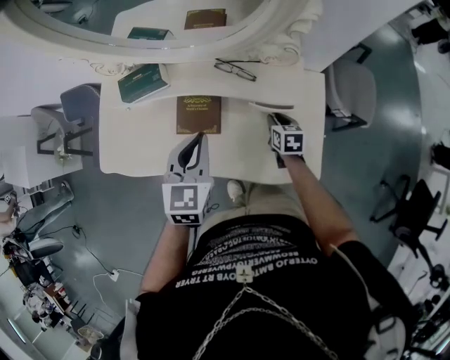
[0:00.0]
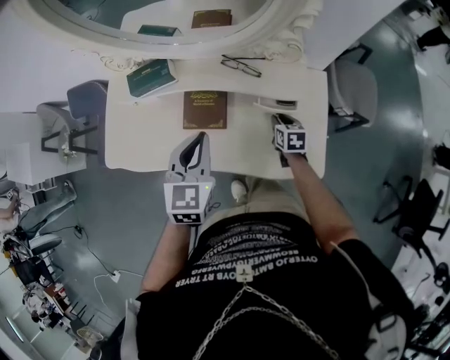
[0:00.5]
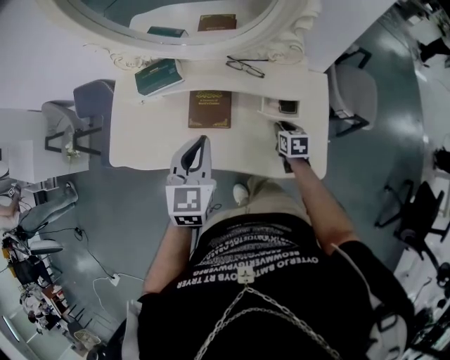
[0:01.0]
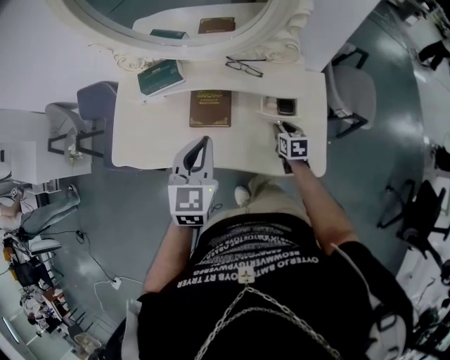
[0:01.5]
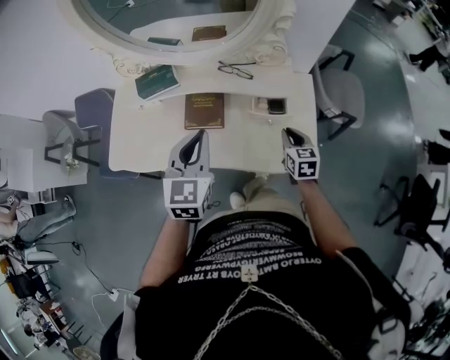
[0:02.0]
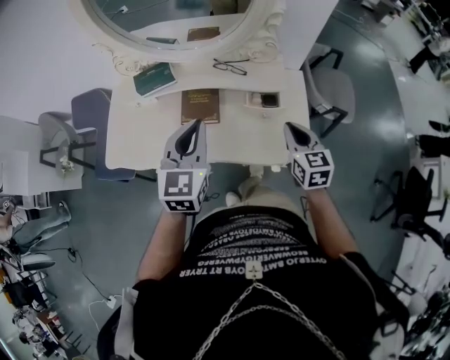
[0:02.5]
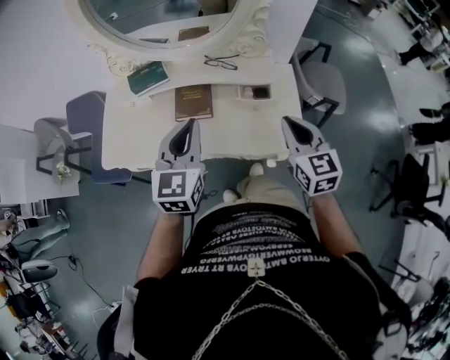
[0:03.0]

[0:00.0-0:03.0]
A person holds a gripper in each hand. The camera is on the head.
0:00.0 to 0:01.5: Both grippers travel together backward, roughly 5 cm.
0:01.5 to 0:03.0: The left gripper travels upward and backward by some 10 cm. The right gripper shifts approximately 35 cm upward and backward, tips its fingers upward by approximately 30 degrees, and closes.

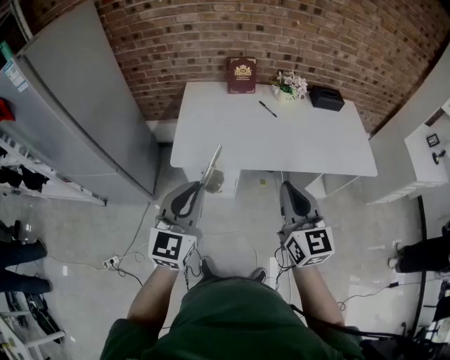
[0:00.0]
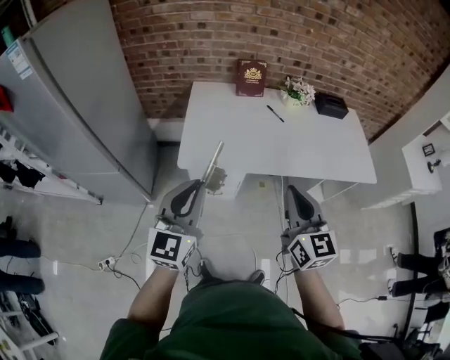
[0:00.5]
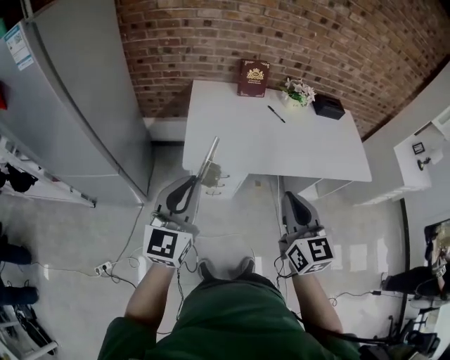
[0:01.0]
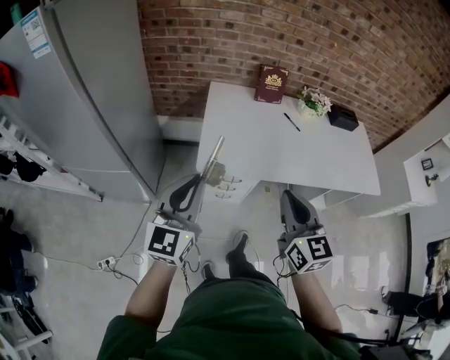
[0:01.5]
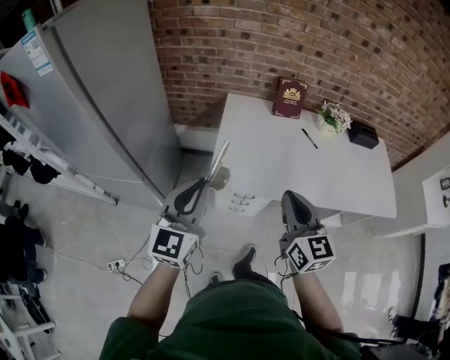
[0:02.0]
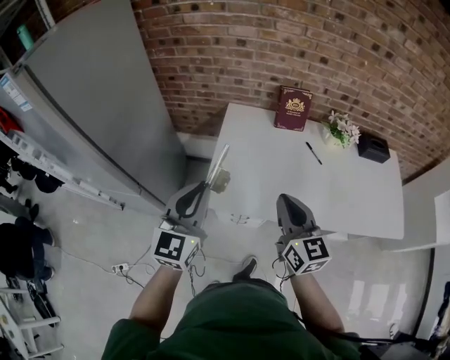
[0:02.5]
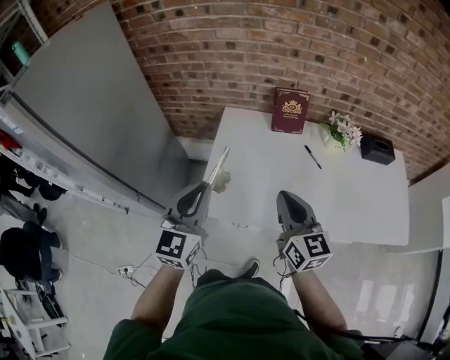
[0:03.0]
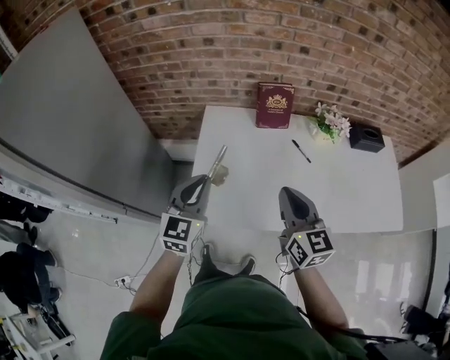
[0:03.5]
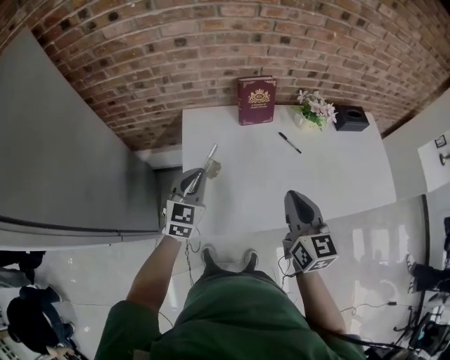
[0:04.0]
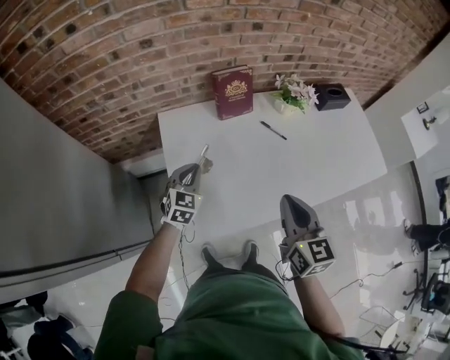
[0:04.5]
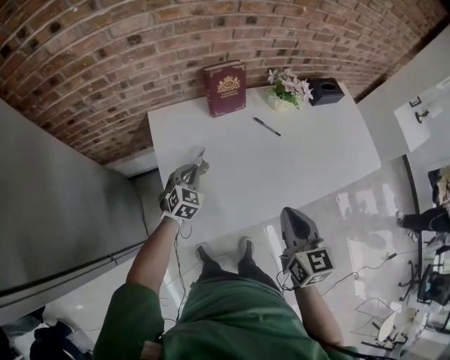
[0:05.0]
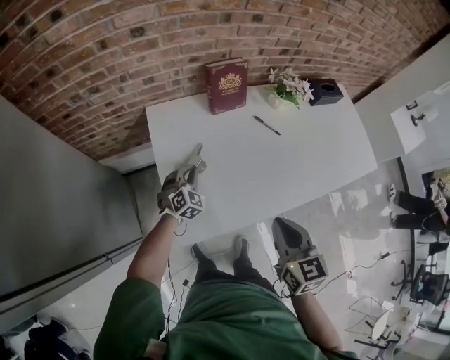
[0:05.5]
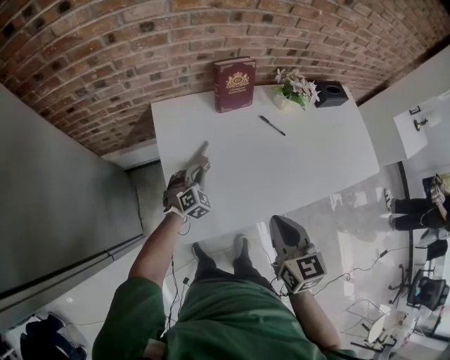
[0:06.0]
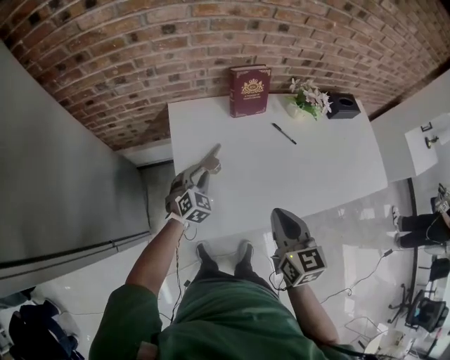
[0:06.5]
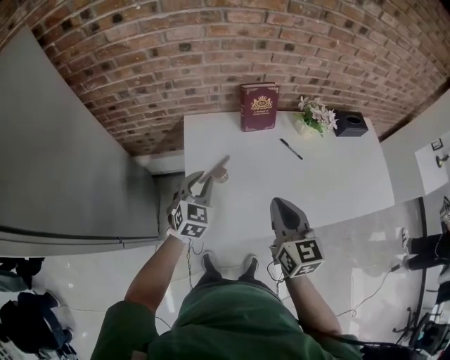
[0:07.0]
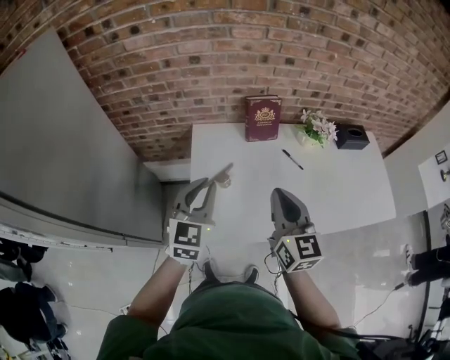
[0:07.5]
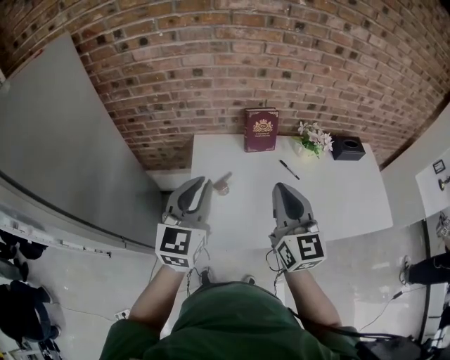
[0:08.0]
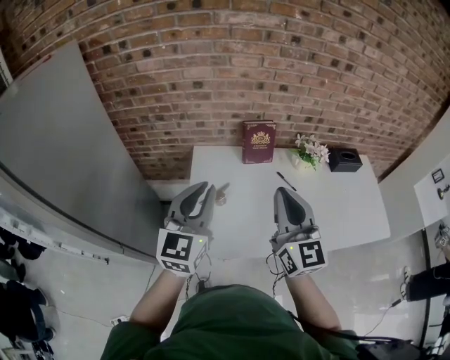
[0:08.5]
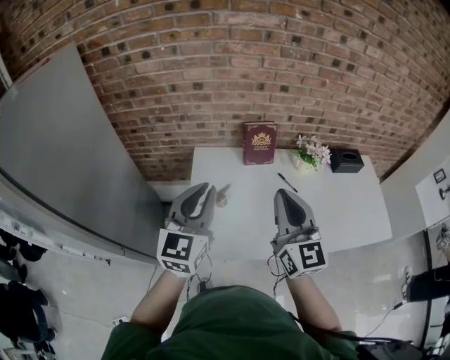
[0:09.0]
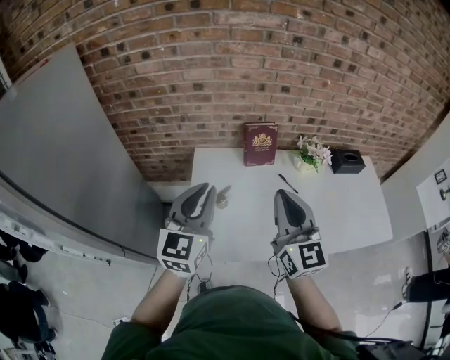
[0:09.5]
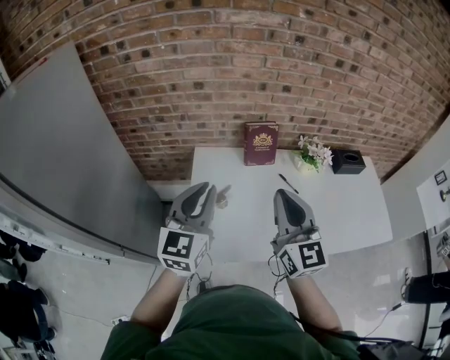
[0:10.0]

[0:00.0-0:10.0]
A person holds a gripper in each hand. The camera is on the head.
0:00.0 to 0:02.0: Both grippers travel together to the left and forward, roughly 20 cm.
0:02.0 to 0:04.0: The left gripper goes some 35 cm forward and downward, and changes its angle by approximately 20 degrees; the right gripper heads forward and to the right, covering approximately 20 cm.
0:04.0 to 0:06.0: The right gripper travels backward and downward by roughly 10 cm. The left gripper is displaced downward by approximately 20 cm, and turns by some 40 degrees.
0:06.0 to 0:08.0: The right gripper is displaced upward by about 15 cm, and points its fingers approximately 30 degrees further upward; the left gripper goes some 40 cm upward, and tips its fingers upward by some 40 degrees.
0:08.0 to 0:10.0: The grippers make only small movements.

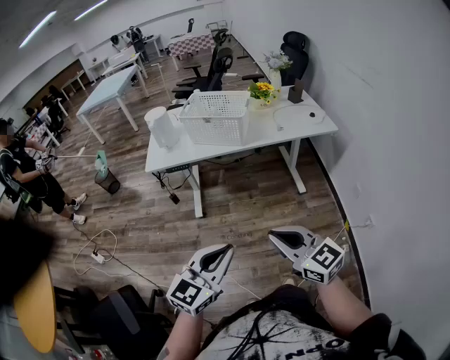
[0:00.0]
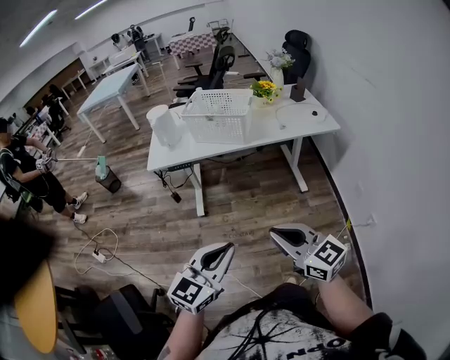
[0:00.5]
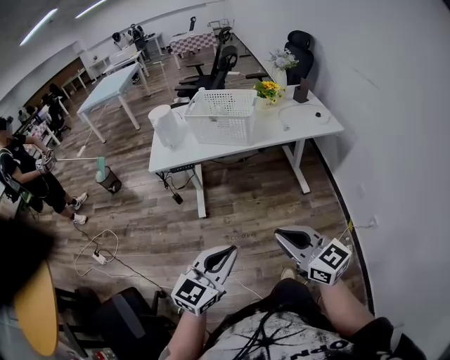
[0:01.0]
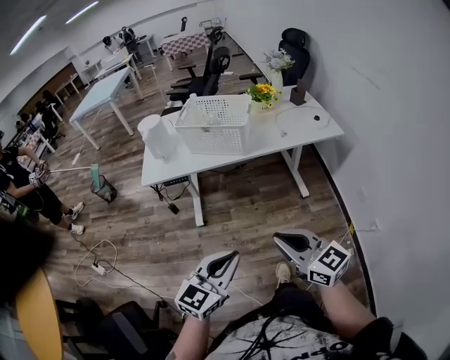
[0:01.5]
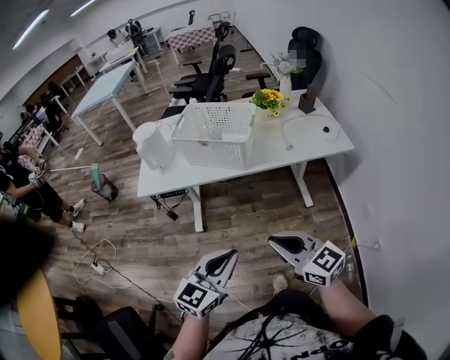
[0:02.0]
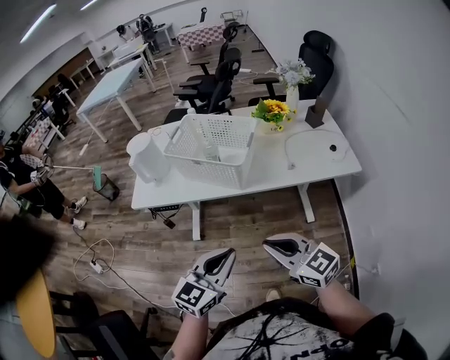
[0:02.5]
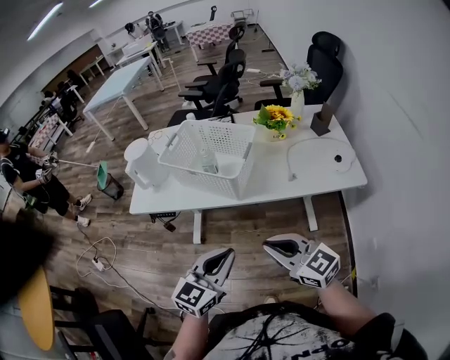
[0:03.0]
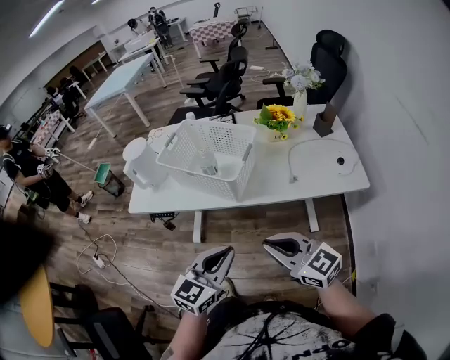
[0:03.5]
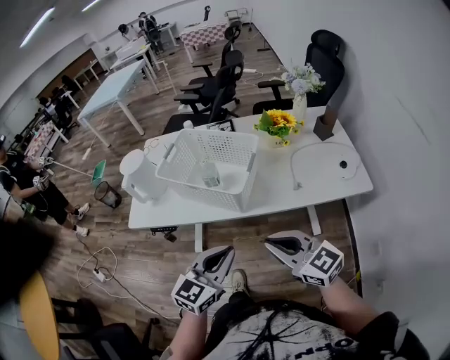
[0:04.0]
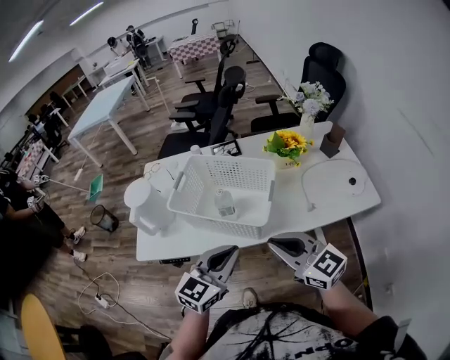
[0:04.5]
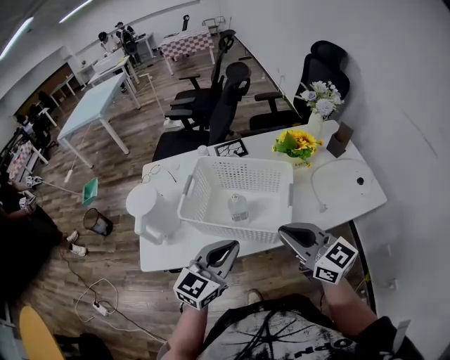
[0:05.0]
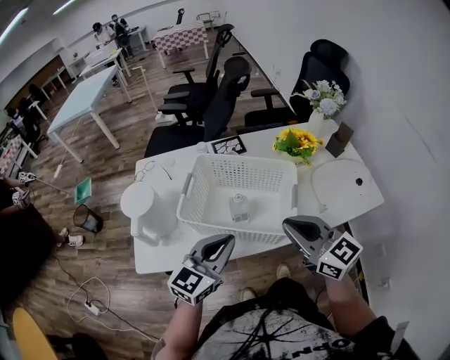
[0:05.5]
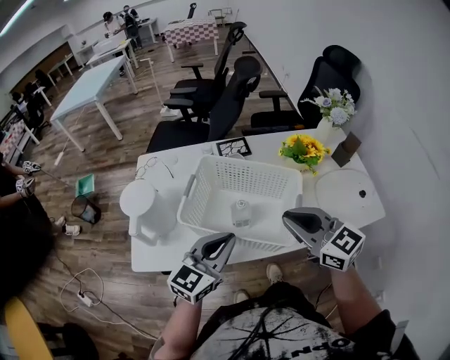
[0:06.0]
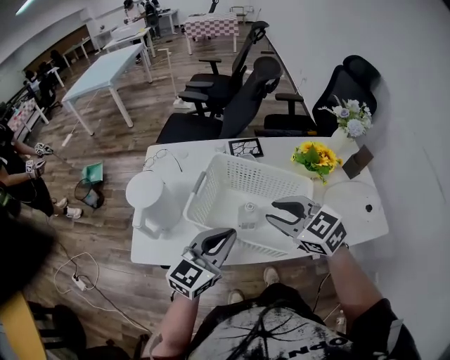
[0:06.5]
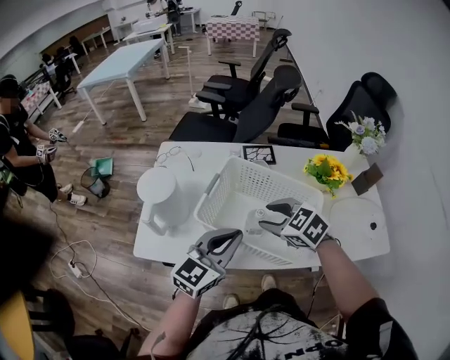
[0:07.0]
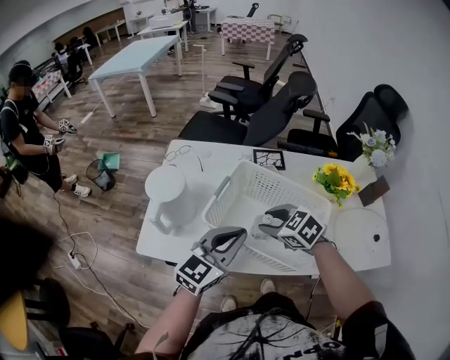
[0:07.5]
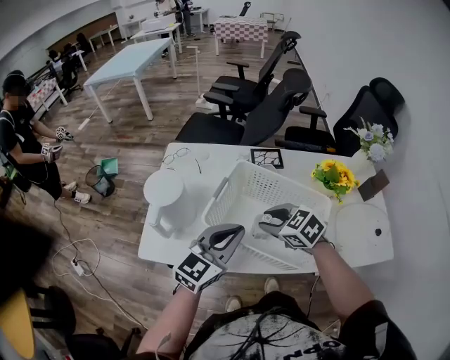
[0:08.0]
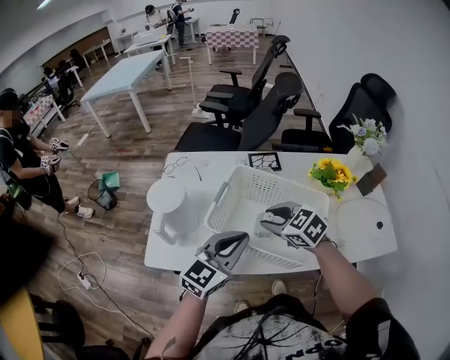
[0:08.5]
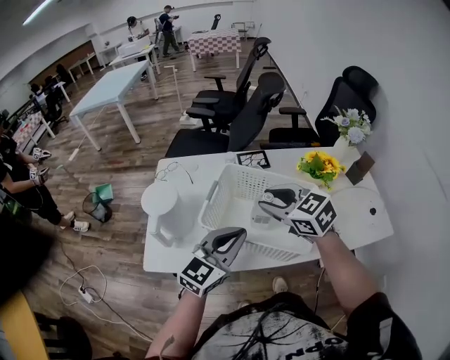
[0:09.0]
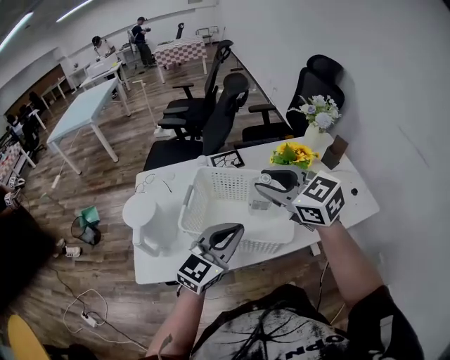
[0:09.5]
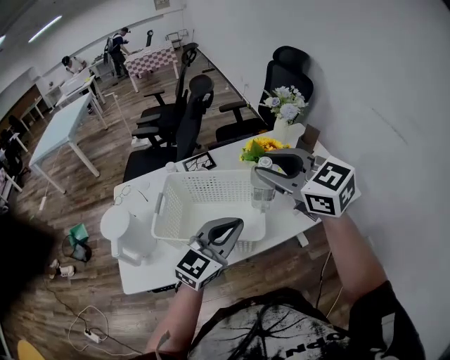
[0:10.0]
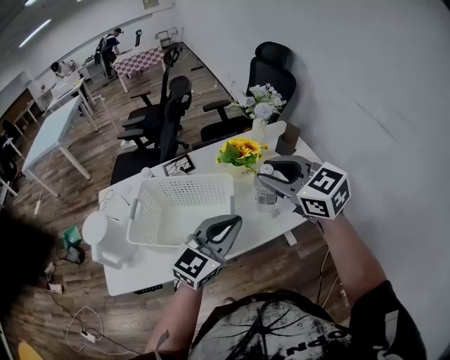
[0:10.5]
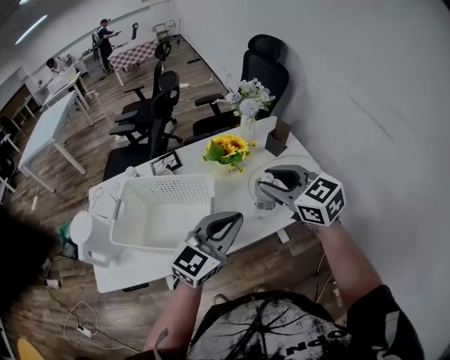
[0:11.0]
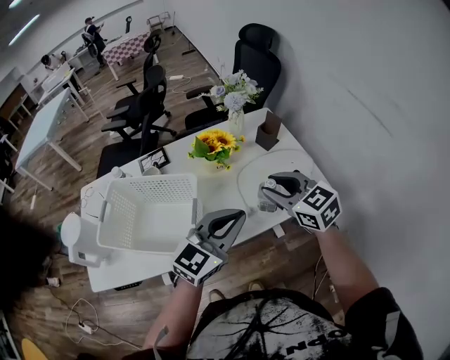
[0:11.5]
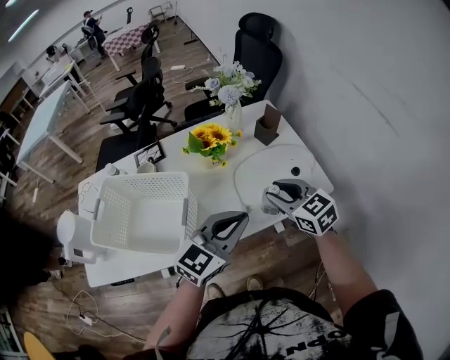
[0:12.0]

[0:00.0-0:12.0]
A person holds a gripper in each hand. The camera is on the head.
0:00.0 to 0:02.0: Both grippers move forward, approximately 20 cm.
0:02.0 to 0:04.0: The two grippers go some 25 cm forward and to the right.
0:04.0 to 0:06.0: The grippers both shift forward and to the left by some 25 cm.
0:06.0 to 0:08.0: The left gripper shifts about 5 cm forward. Meanwhile the right gripper goes about 20 cm downward, forward and to the left, tips its fingers downward by some 30 degrees, and opens its fingers.
0:08.0 to 0:10.0: The left gripper changes place by approximately 15 cm, and rotates about 20 degrees; the right gripper goes some 25 cm upward, and tips its fingers upward by roughly 30 degrees.
0:10.0 to 0:12.0: The left gripper is displaced to the right by some 25 cm; the right gripper is displaced to the right and downward by some 35 cm.

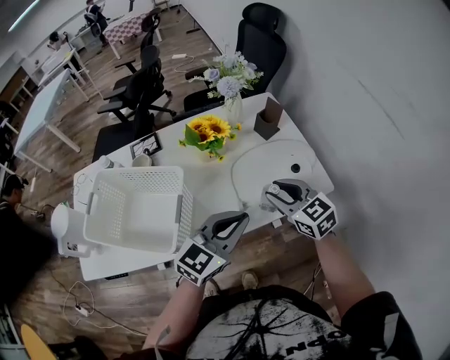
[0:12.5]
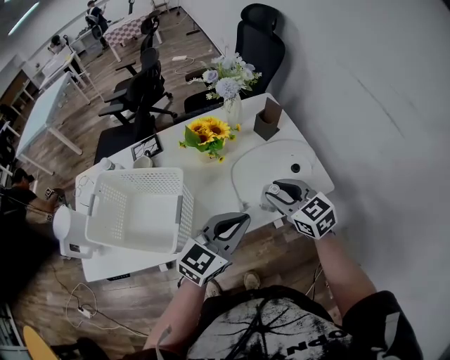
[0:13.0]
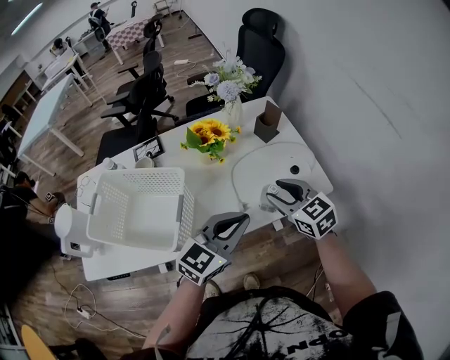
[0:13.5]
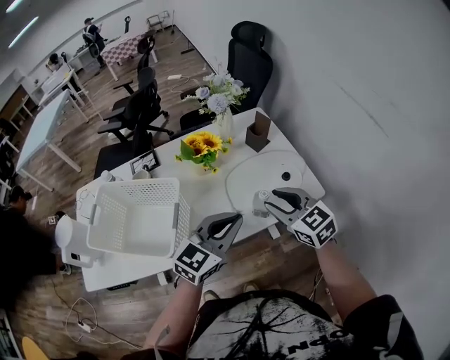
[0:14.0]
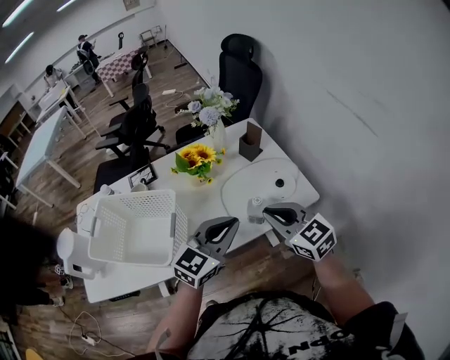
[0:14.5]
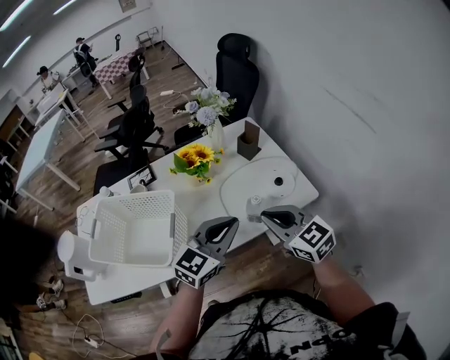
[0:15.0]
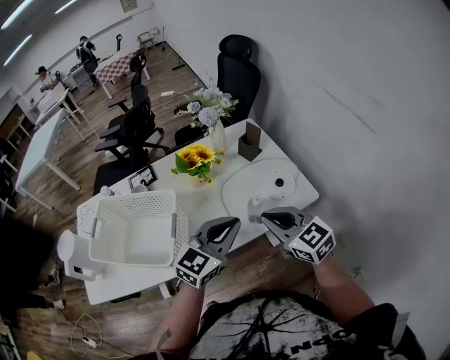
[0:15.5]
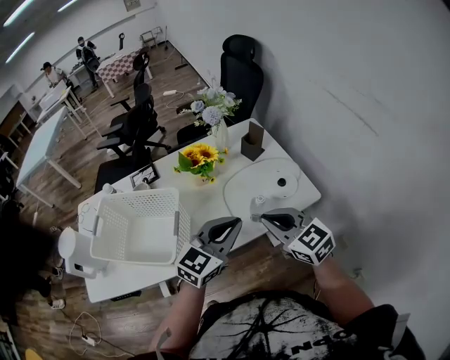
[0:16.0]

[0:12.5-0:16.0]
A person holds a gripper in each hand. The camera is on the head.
0:12.5 to 0:14.5: The right gripper moves backward and upward, roughly 10 cm, and closes.
0:14.5 to 0:16.0: There are only small adjustments of the grippers.
